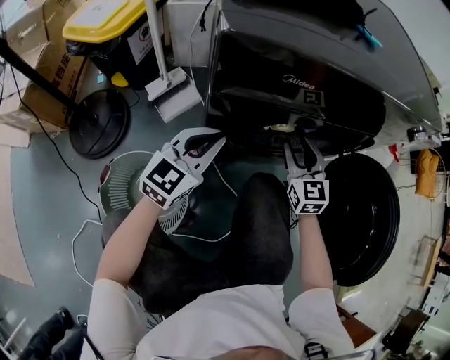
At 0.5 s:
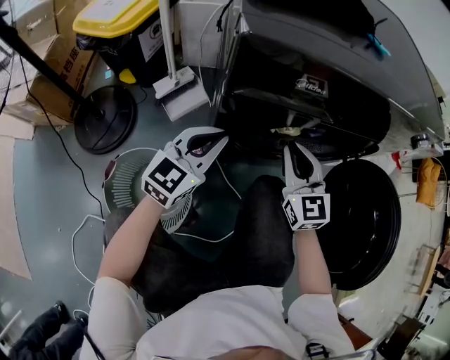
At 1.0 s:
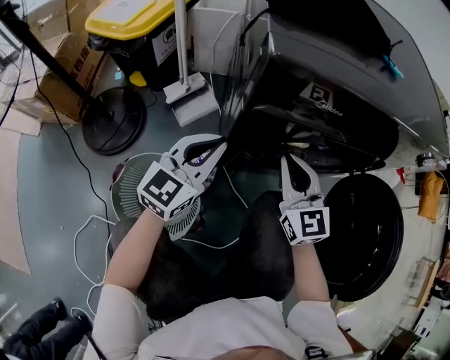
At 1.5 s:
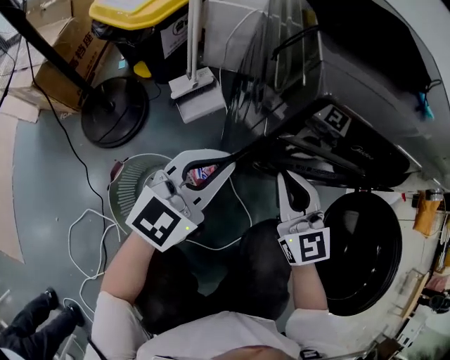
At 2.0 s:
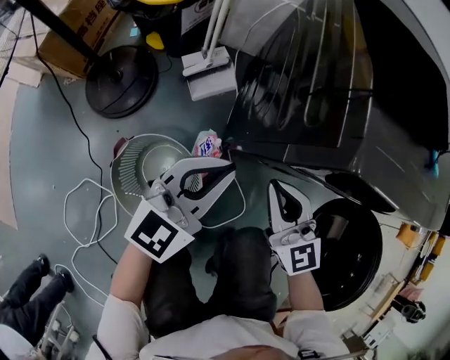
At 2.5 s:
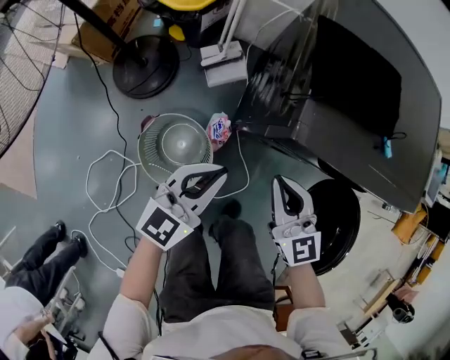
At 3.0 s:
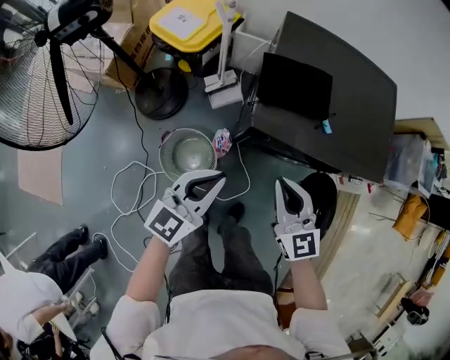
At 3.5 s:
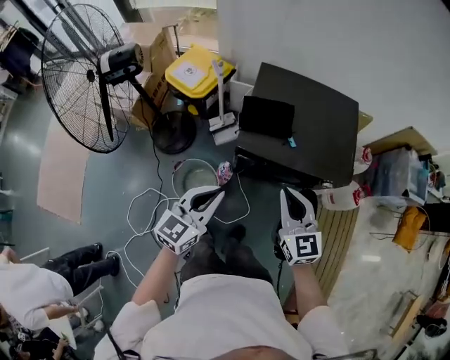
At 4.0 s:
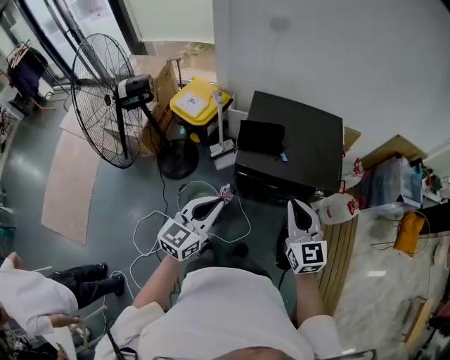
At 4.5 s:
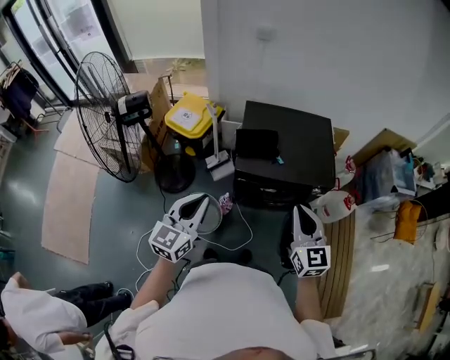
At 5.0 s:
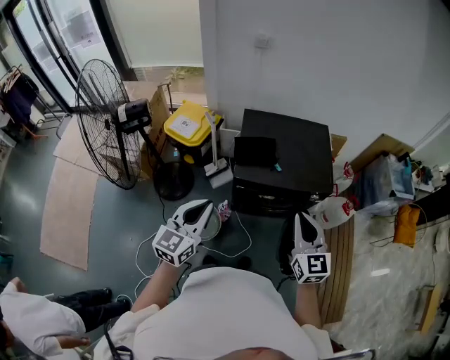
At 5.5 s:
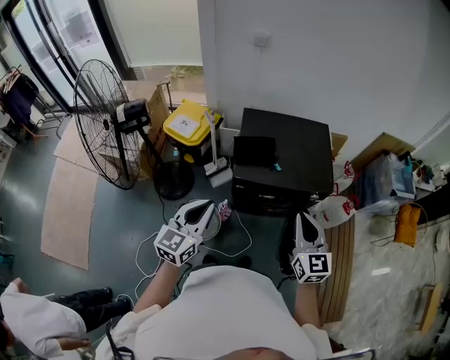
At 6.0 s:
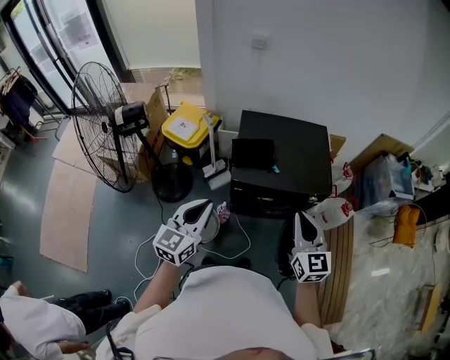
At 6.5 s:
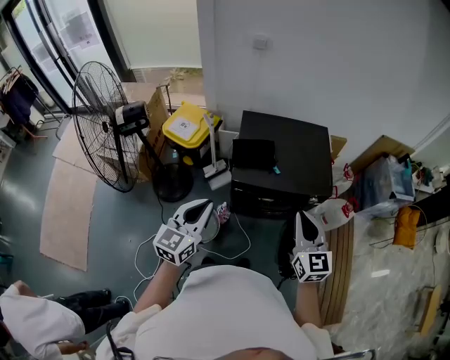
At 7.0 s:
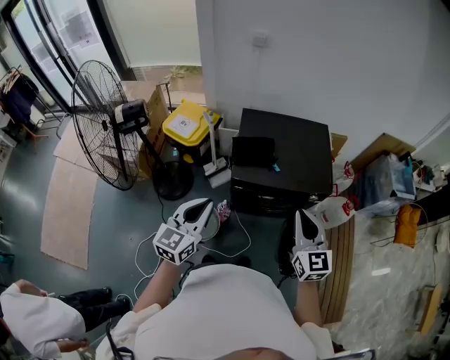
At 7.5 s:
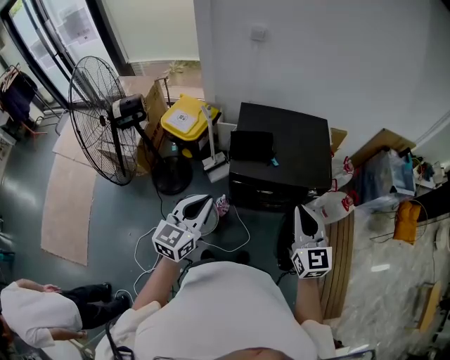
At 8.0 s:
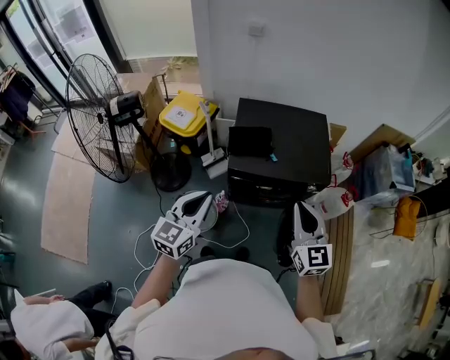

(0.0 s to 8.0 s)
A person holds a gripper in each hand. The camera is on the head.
0.0 s - 2.0 s: The left gripper travels upward and to the left by roughly 10 cm. The right gripper travels to the left and upward by approximately 20 cm, and turns by approximately 30 degrees.
2.0 s - 4.0 s: The grippers both shift upward by some 60 cm.
4.0 s - 6.0 s: The left gripper moves about 5 cm, while the right gripper ends up about 5 cm from where it was.
6.0 s - 8.0 s: There are only small adjustments of the grippers.

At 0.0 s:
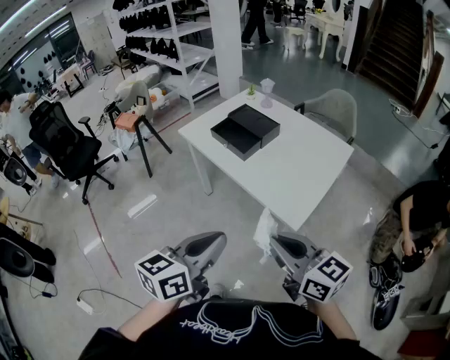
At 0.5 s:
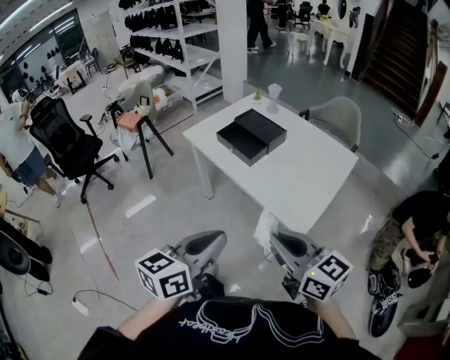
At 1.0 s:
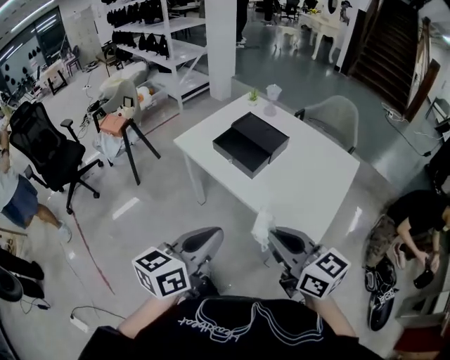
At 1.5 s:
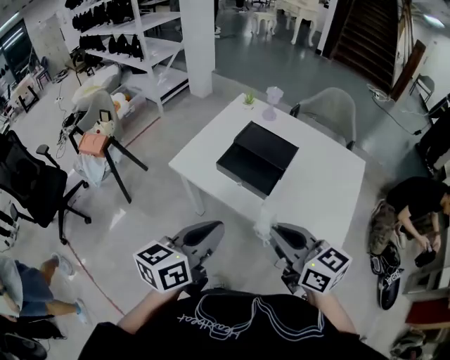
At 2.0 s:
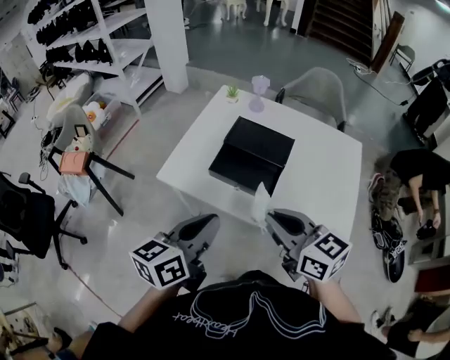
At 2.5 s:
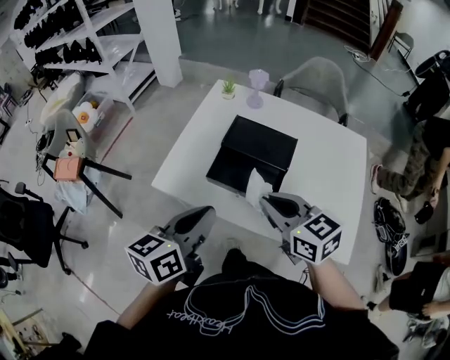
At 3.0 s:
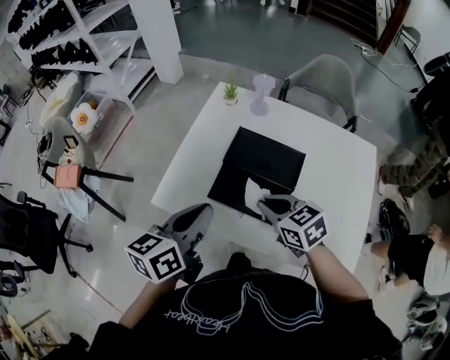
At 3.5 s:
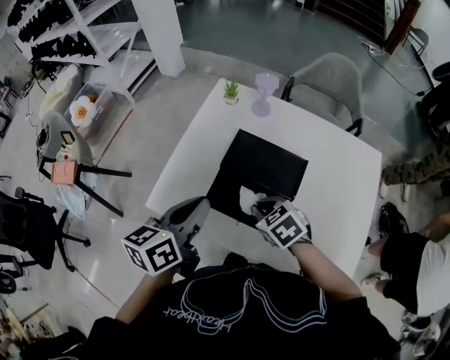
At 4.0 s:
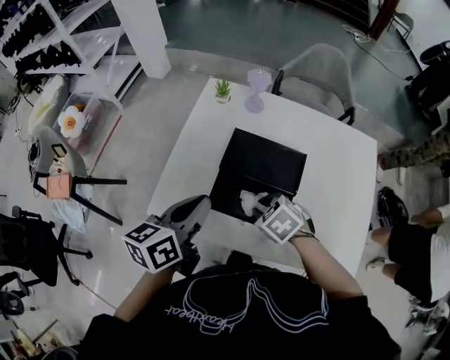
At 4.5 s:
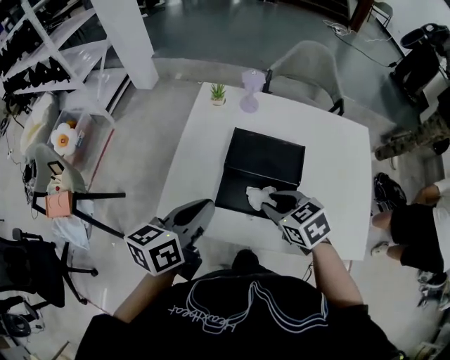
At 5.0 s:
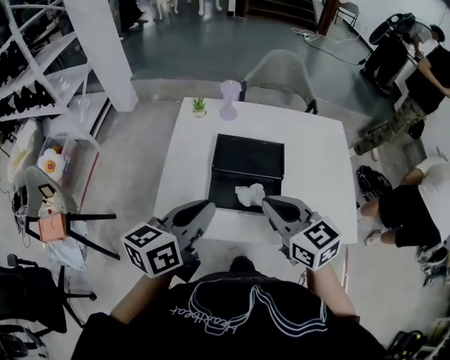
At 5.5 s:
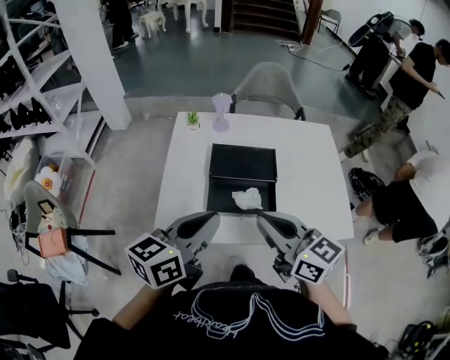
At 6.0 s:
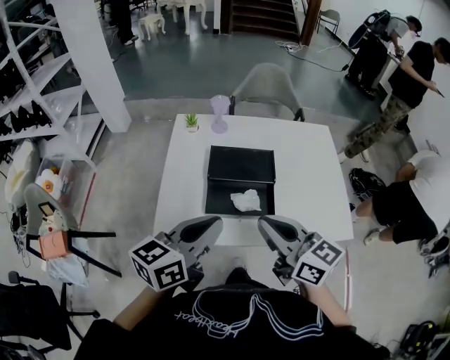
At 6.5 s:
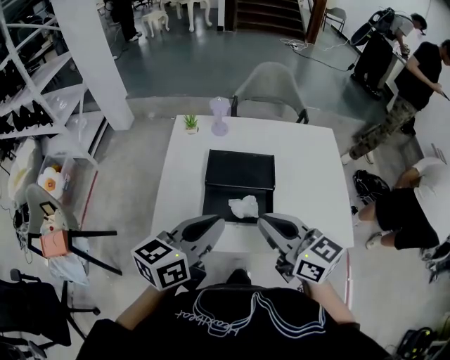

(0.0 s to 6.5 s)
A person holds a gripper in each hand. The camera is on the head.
0.0 s - 2.0 s: The grippers both shift forward and to the left by roughly 40 cm. The right gripper swivels roughly 20 degrees.
2.0 s - 4.5 s: The right gripper moves forward and downward, about 20 cm, points its fingers about 30 degrees further downward, and opens. The left gripper shifts approximately 20 cm forward.
4.5 s - 6.5 s: The left gripper goes about 10 cm upward and to the right, and turns by about 20 degrees. Meanwhile the right gripper heads upward and backward, covering some 15 cm, tips its fingers upward by roughly 40 degrees, and closes its fingers.

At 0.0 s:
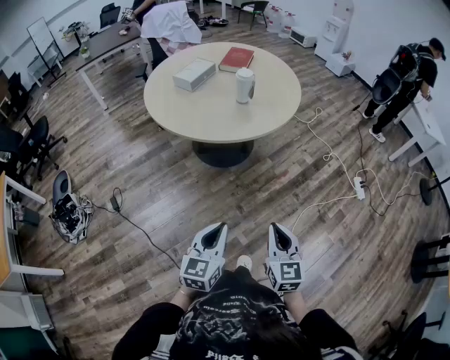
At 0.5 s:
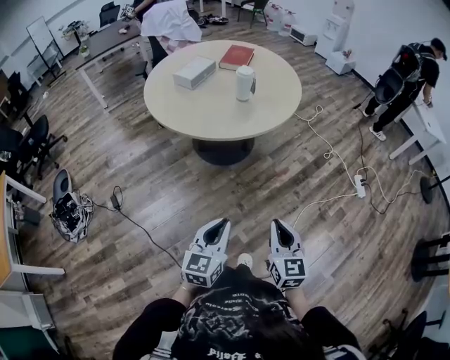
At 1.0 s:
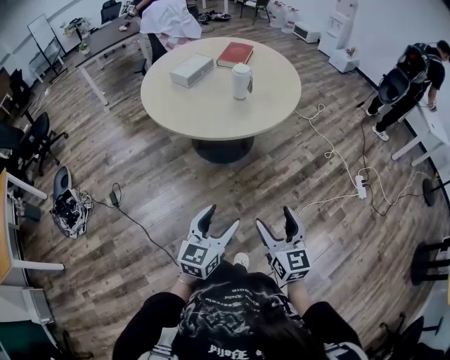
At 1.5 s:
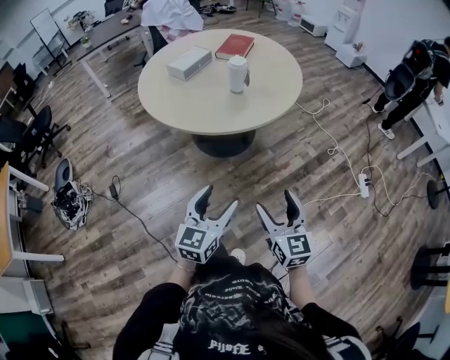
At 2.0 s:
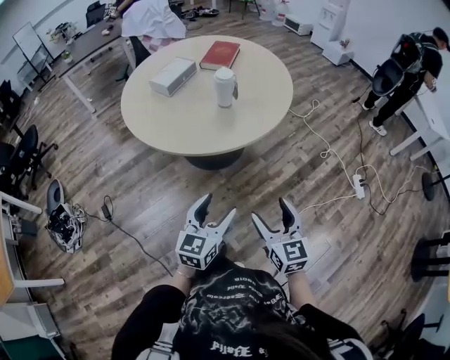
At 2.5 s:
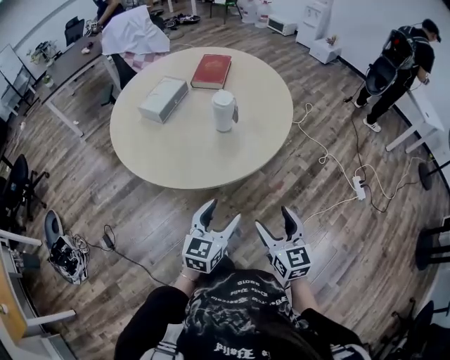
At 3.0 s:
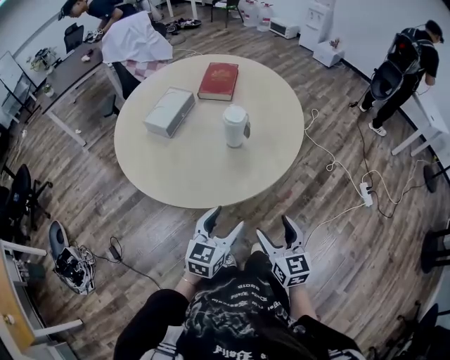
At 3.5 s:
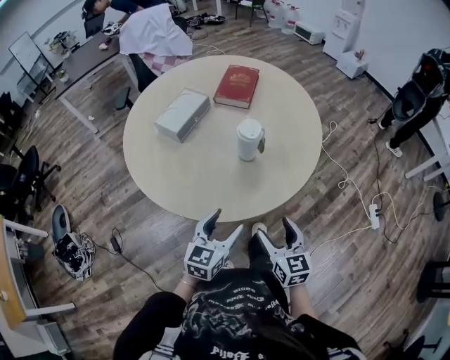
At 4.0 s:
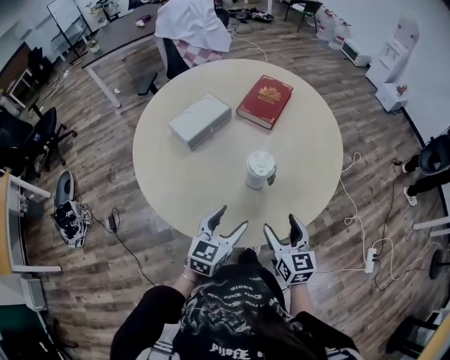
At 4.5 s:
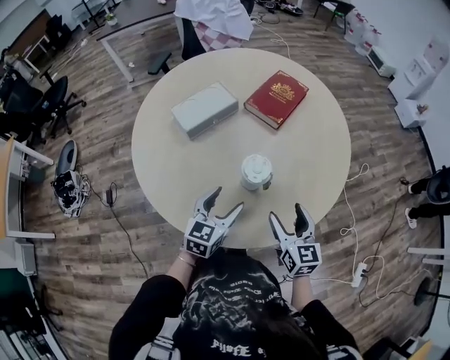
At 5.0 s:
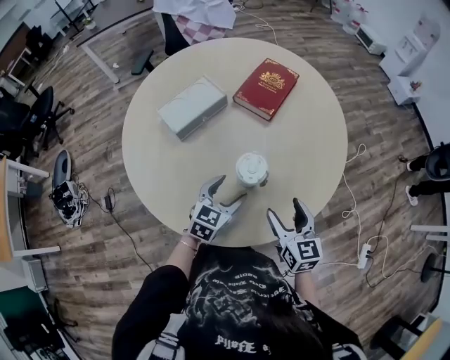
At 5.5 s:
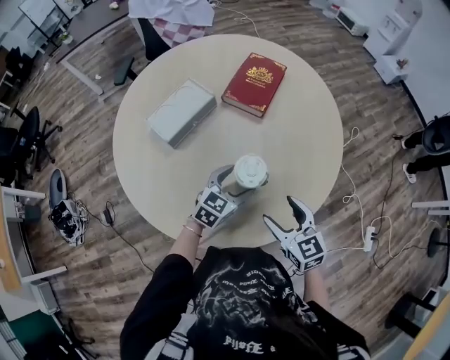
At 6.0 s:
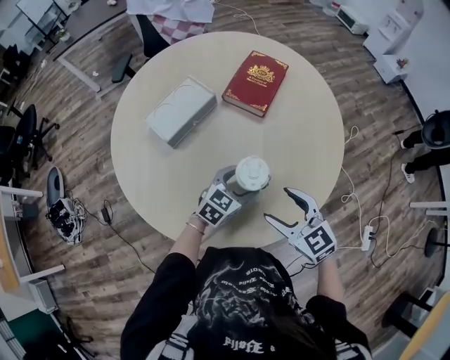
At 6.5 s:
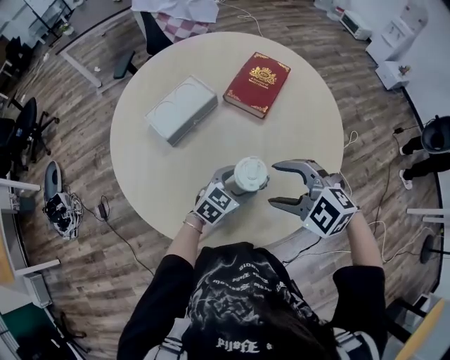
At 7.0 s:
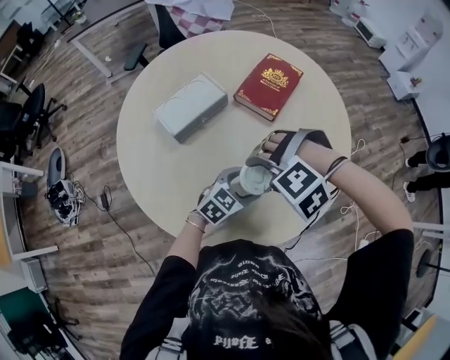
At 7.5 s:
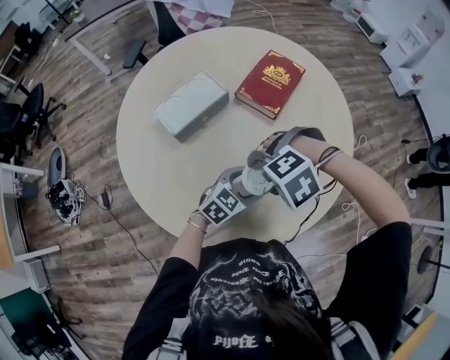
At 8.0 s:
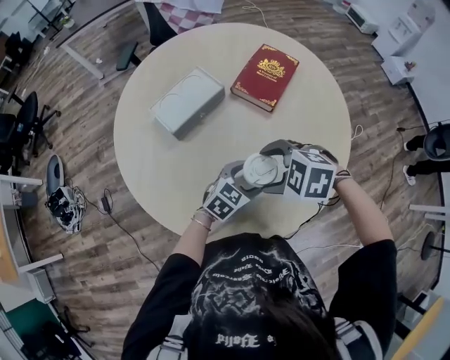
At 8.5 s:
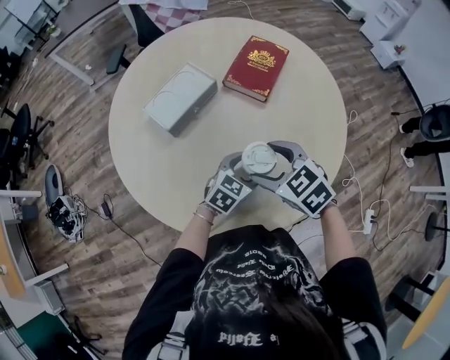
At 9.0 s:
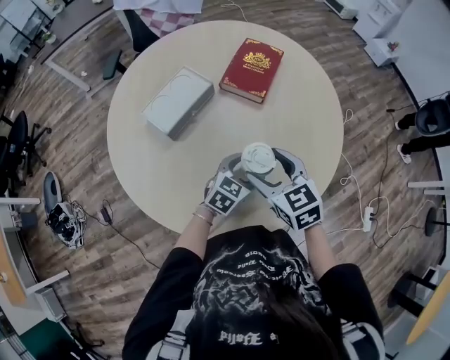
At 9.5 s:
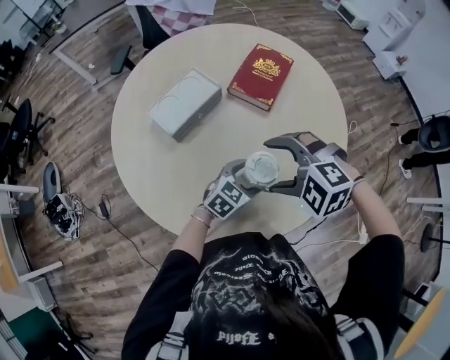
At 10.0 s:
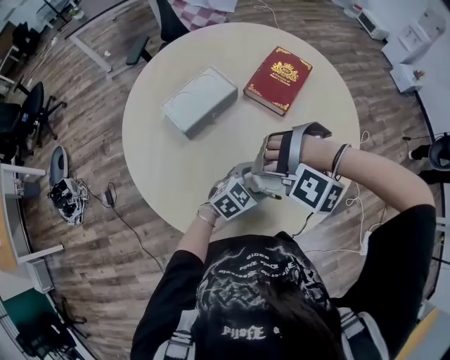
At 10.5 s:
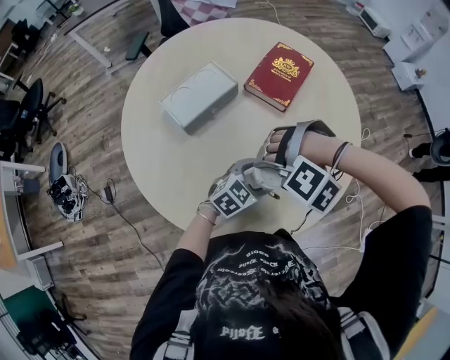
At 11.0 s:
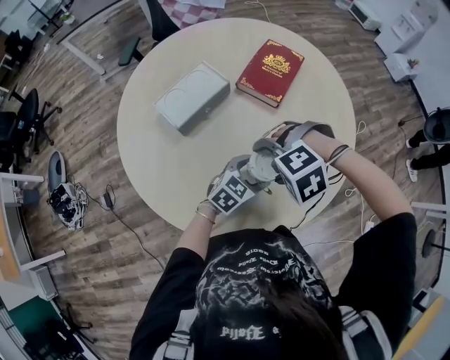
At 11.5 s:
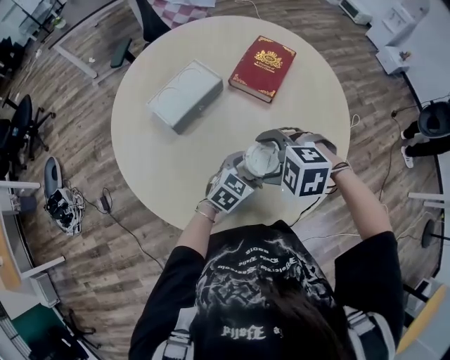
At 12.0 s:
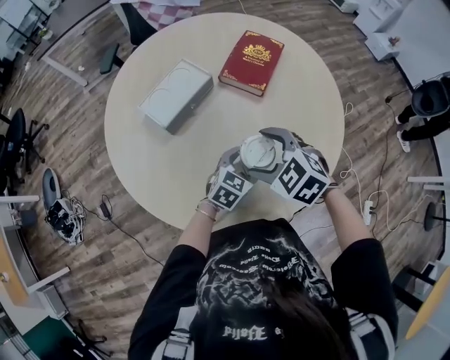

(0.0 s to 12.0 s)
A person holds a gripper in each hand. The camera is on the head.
0.0 s - 2.0 s: The grippers both shift forward by roughly 20 cm. The left gripper opens its fingers. Meanwhile the right gripper opens up.
2.0 s - 4.0 s: Both grippers travel together forward, about 40 cm.
4.0 s - 6.0 s: The left gripper goes about 20 cm forward and downward, and rotates approximately 20 degrees. The right gripper shifts approximately 10 cm forward, and rotates about 30 degrees.
6.0 s - 8.0 s: The right gripper shifts by approximately 10 cm, and tips its fingers downward by about 30 degrees.
8.0 s - 10.0 s: The right gripper twists roughly 80 degrees counterclockwise, seen from behind.
10.0 s - 12.0 s: The right gripper rolls clockwise, seen from behind, by approximately 100 degrees.
